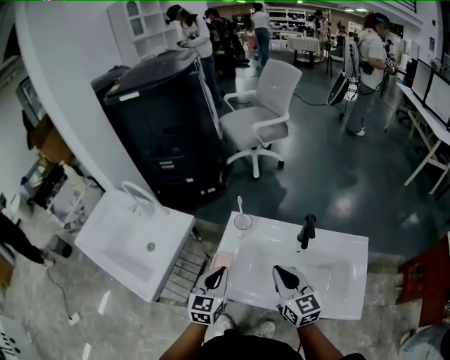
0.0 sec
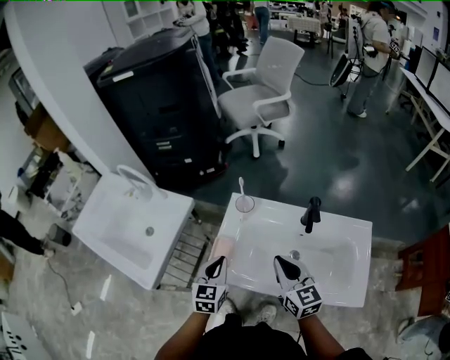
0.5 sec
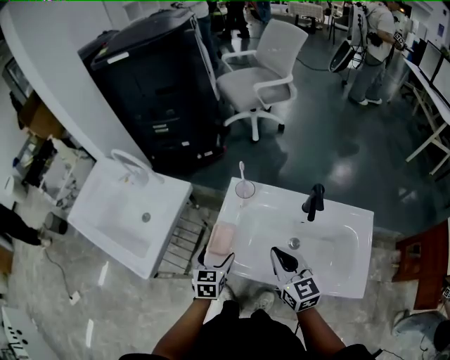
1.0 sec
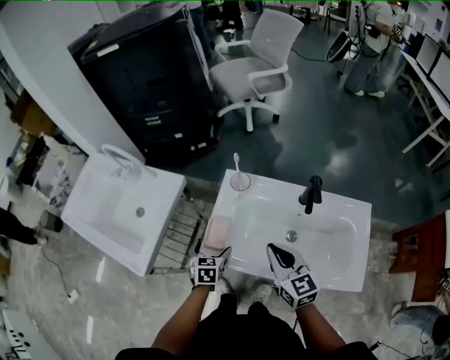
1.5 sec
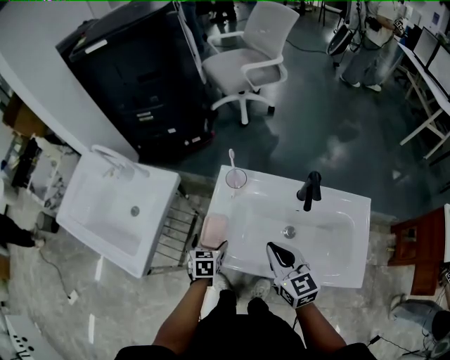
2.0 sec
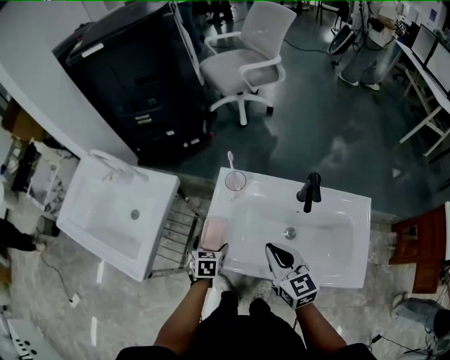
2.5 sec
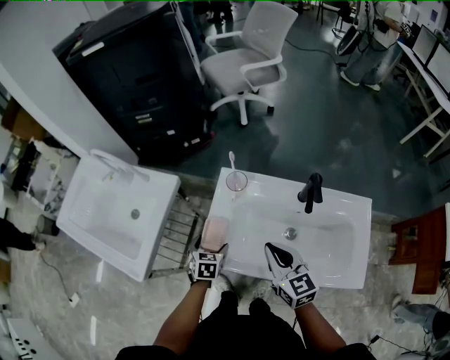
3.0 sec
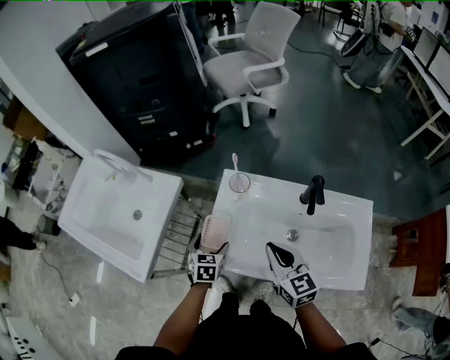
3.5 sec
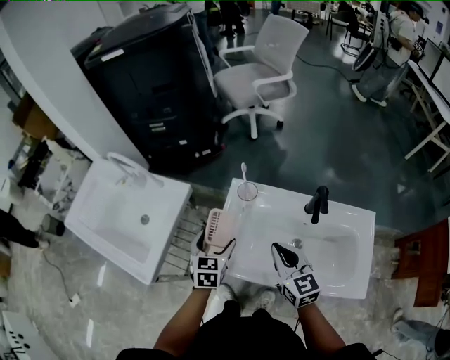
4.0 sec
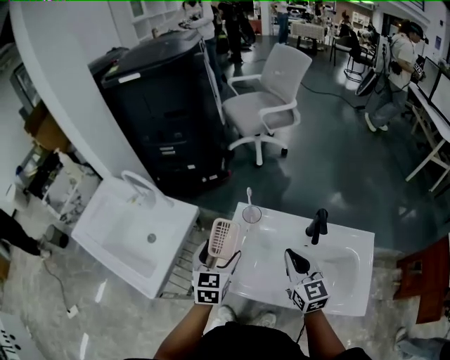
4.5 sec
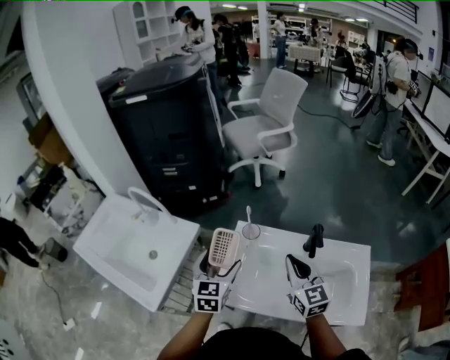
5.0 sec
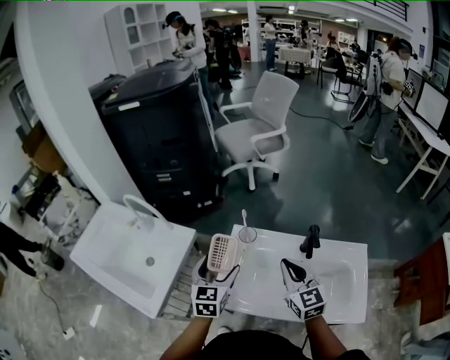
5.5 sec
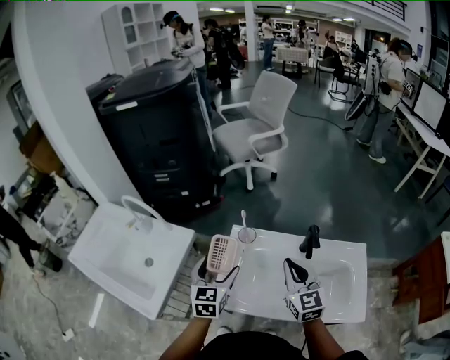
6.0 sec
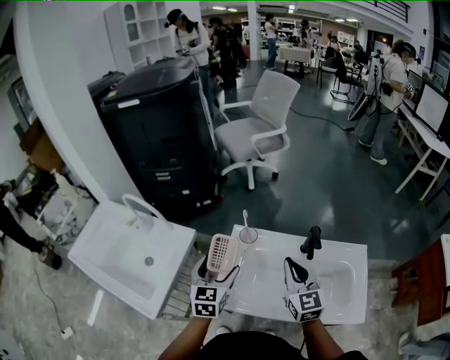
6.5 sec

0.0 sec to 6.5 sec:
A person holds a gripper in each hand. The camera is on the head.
0.0 sec to 2.0 sec: The left gripper shifts about 20 cm downward, angles its fingers downward, by some 30 degrees, and opens. The right gripper moves downward, approximately 5 cm.
2.0 sec to 4.5 sec: The right gripper goes roughly 5 cm forward; the left gripper is displaced upward by about 20 cm, and rotates approximately 30 degrees.
4.5 sec to 6.5 sec: The grippers make only small movements.

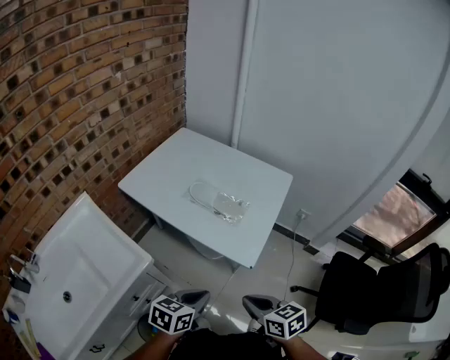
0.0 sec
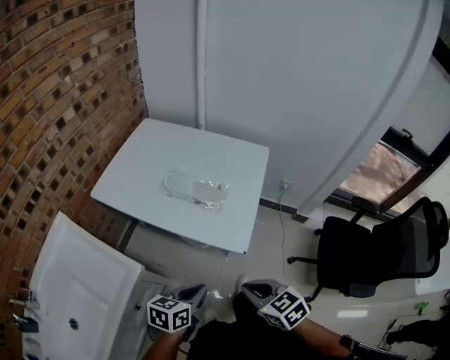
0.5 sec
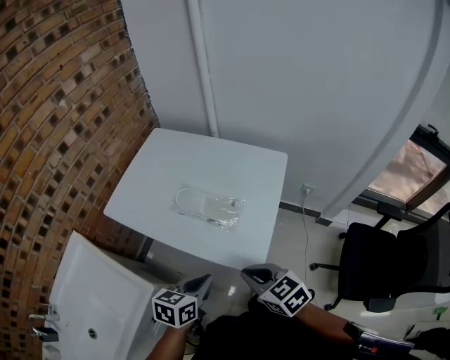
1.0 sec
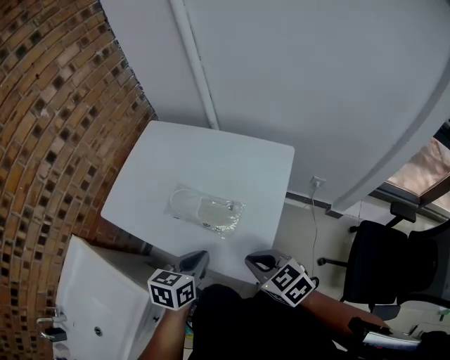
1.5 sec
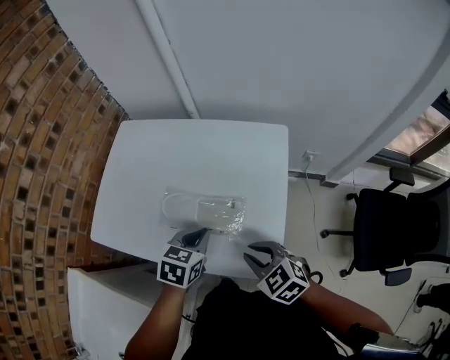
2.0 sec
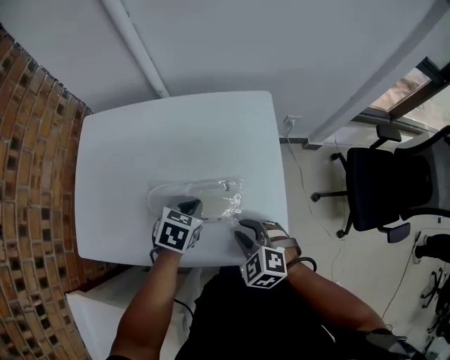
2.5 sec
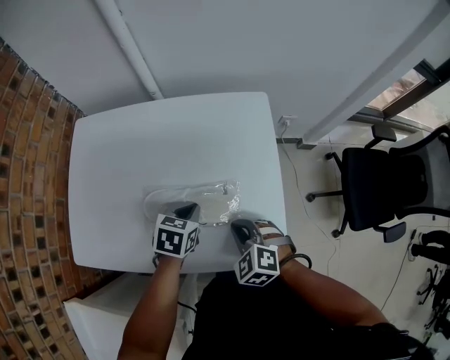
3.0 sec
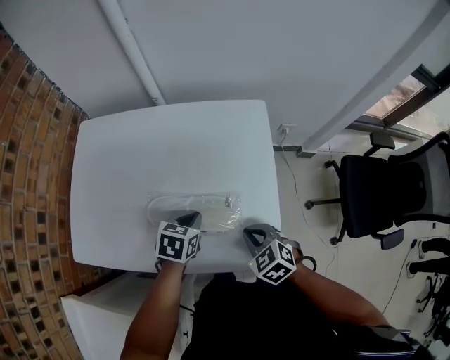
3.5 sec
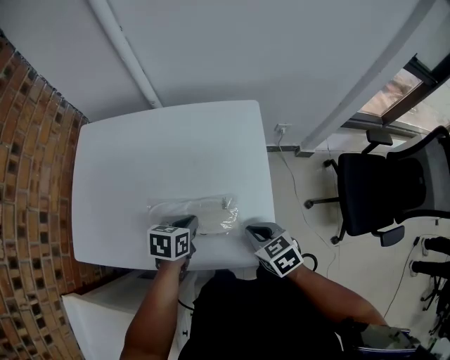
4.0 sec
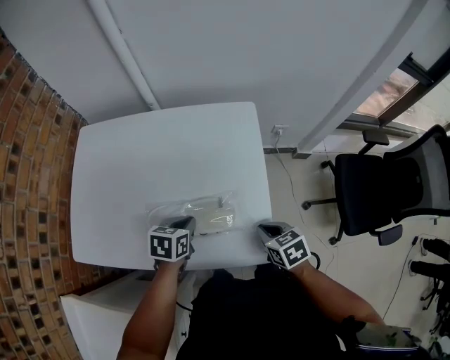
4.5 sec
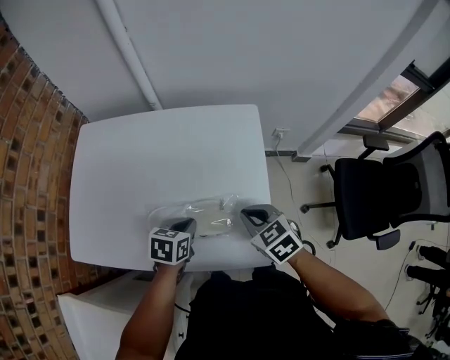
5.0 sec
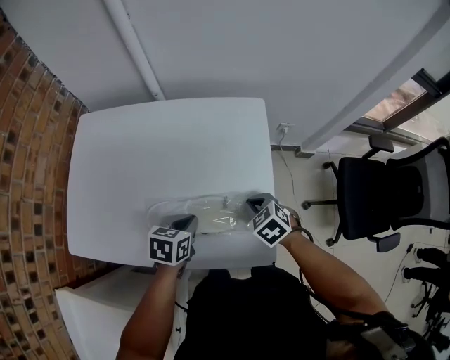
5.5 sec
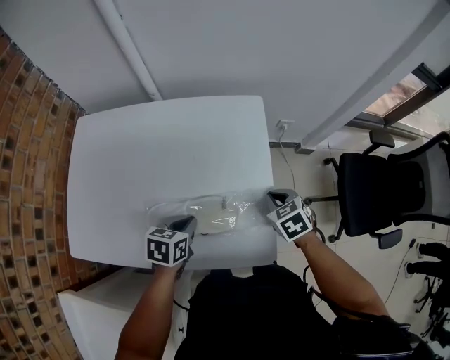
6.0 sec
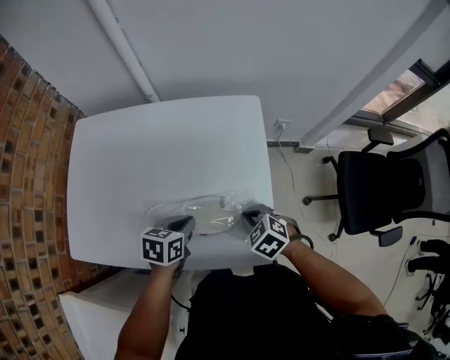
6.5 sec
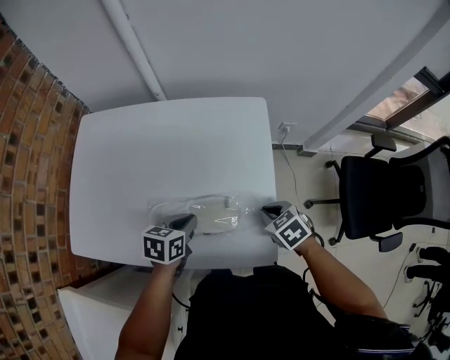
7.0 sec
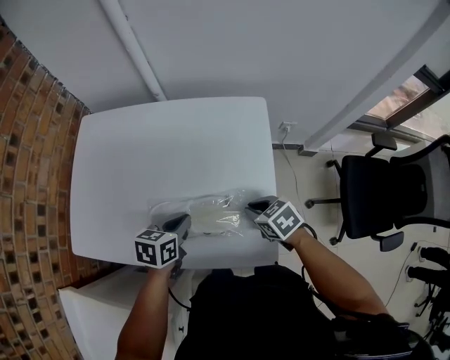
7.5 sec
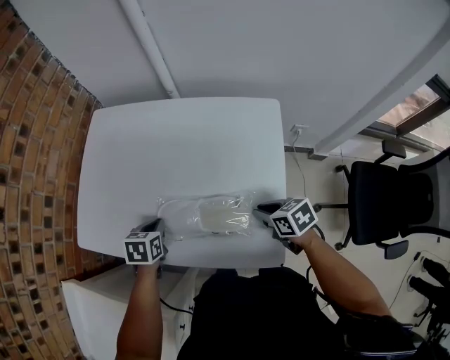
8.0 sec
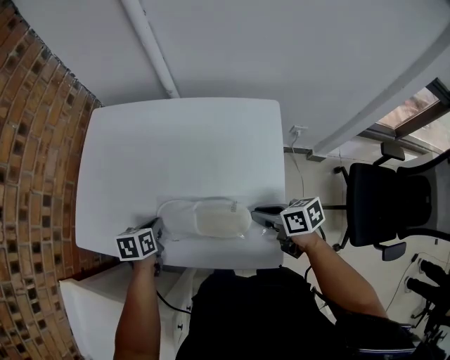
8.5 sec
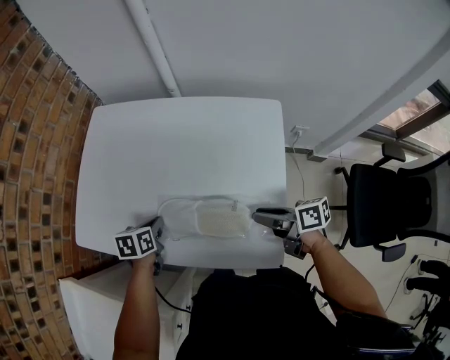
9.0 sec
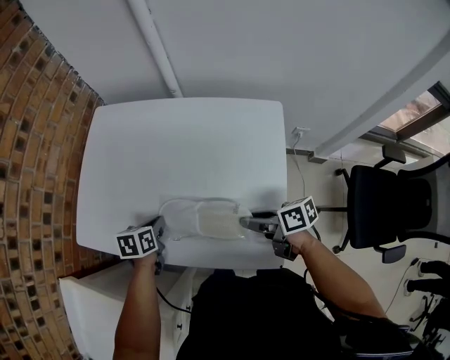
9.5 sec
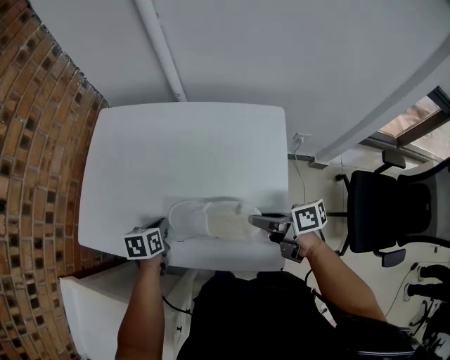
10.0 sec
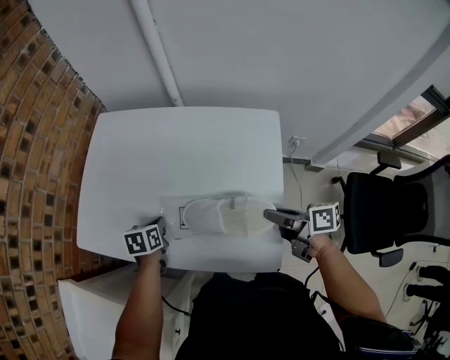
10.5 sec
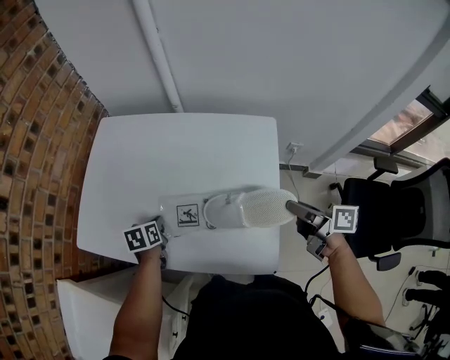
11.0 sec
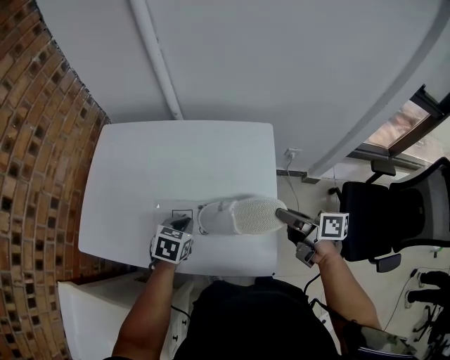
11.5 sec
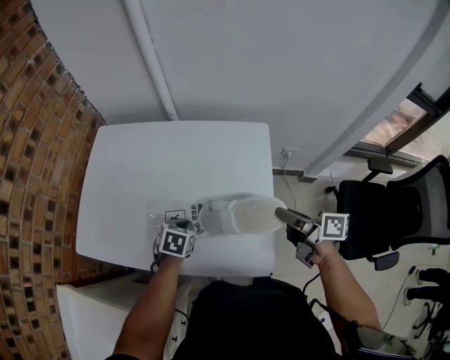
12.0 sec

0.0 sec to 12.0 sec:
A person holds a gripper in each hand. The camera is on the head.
0.0 sec to 2.0 sec: Both grippers move forward, roughly 35 cm. The left gripper swivels approximately 20 degrees. Meanwhile the right gripper turns by some 30 degrees.
2.0 sec to 4.0 sec: The two grippers go approximately 10 cm downward. The right gripper turns by roughly 30 degrees.
4.0 sec to 6.0 sec: The right gripper goes roughly 10 cm forward and to the right.
6.0 sec to 8.0 sec: The left gripper changes place by some 15 cm, and turns by roughly 20 degrees, while the right gripper changes place by some 10 cm, and changes its angle by some 30 degrees.
8.0 sec to 10.0 sec: The right gripper moves upward, approximately 5 cm, and tips its fingers upward by roughly 30 degrees.
10.0 sec to 12.0 sec: The left gripper goes approximately 10 cm to the right, and turns by approximately 30 degrees, while the right gripper is displaced to the right and upward by approximately 15 cm, and rotates roughly 20 degrees.

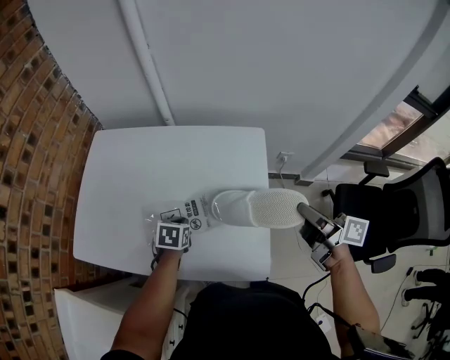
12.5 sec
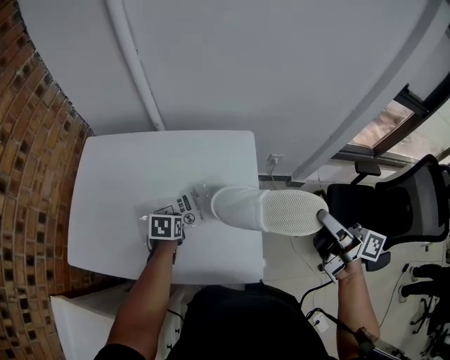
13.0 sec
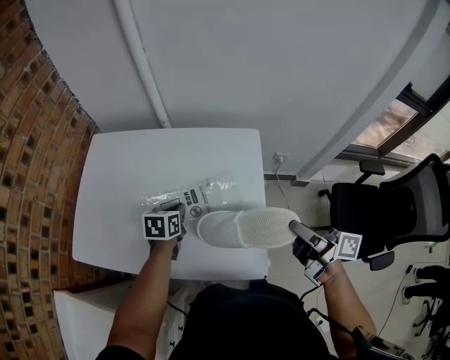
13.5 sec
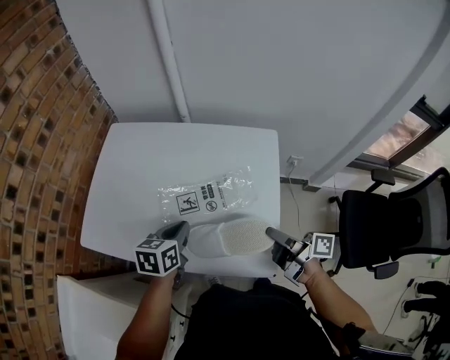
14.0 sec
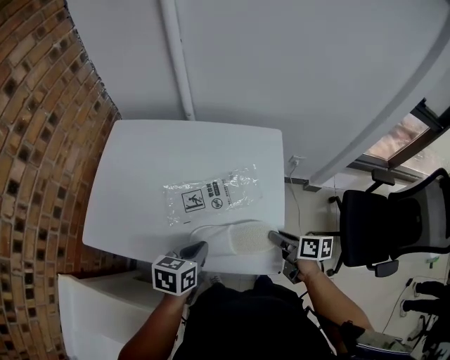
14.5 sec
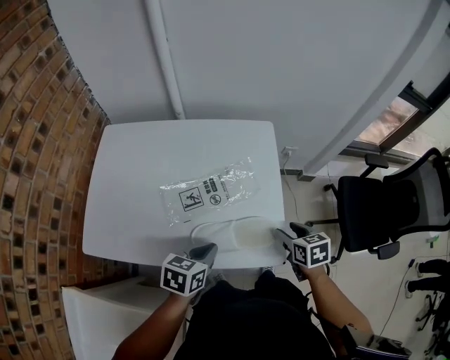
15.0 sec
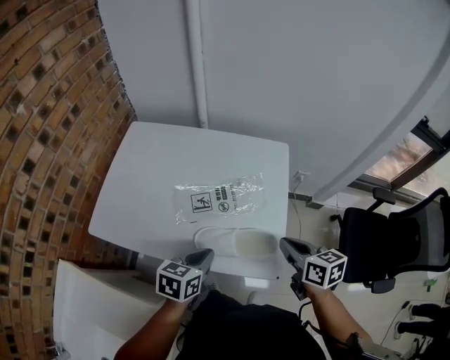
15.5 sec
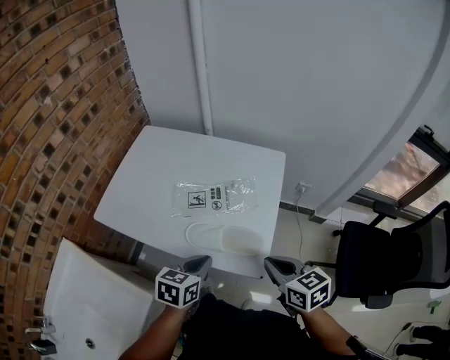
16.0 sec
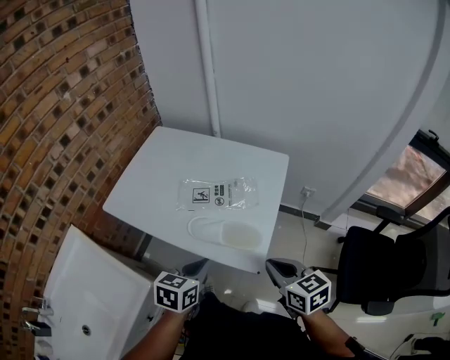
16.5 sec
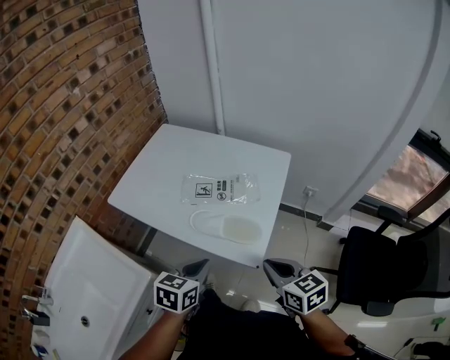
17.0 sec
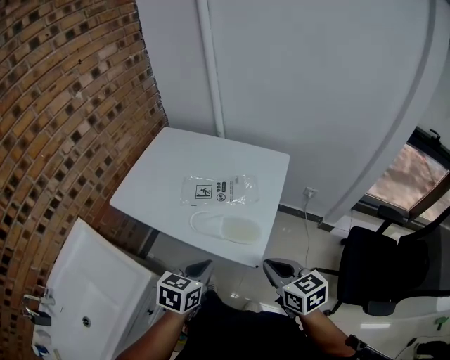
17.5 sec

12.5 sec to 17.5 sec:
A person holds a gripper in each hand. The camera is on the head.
12.5 sec to 15.0 sec: The left gripper travels backward and upward by approximately 15 cm, and rotates some 20 degrees. The right gripper goes some 20 cm downward, backward and to the left, angles its fingers downward, by roughly 40 degrees, and opens.
15.0 sec to 17.5 sec: The right gripper shifts by approximately 20 cm, swivels some 40 degrees, and closes, while the left gripper ends up roughly 20 cm from where it was, and rotates some 30 degrees.

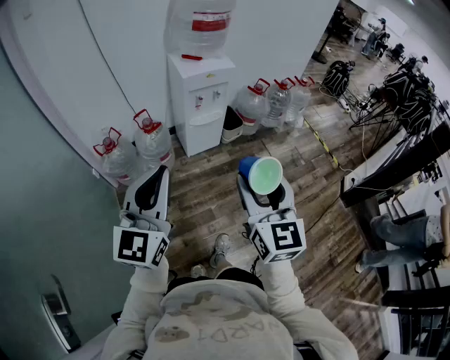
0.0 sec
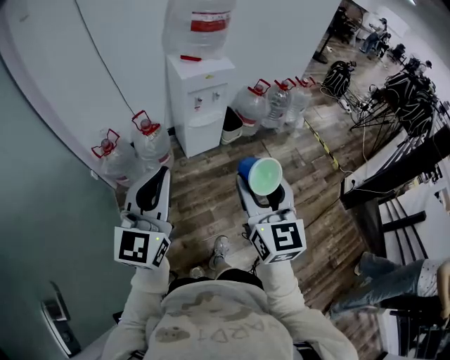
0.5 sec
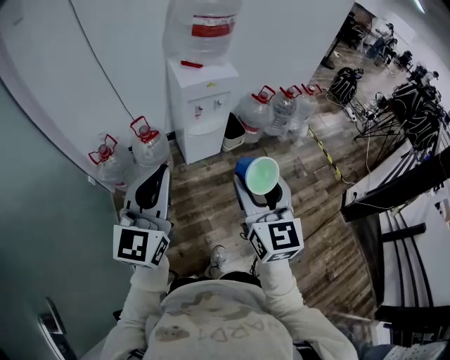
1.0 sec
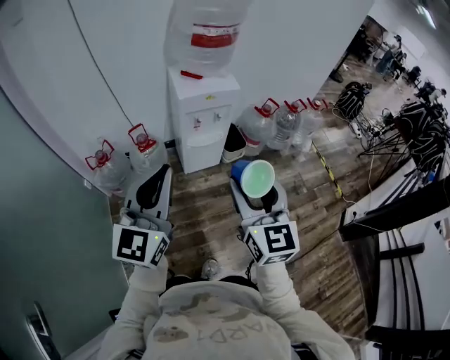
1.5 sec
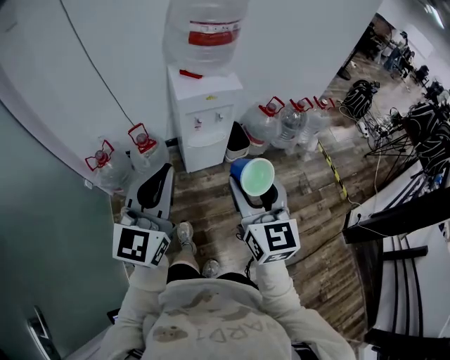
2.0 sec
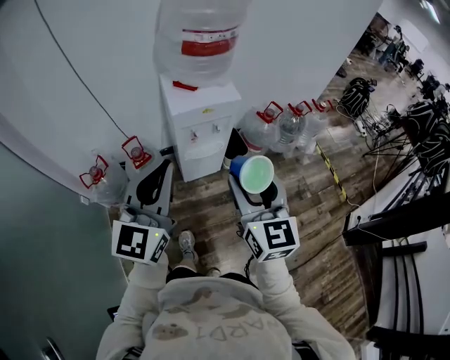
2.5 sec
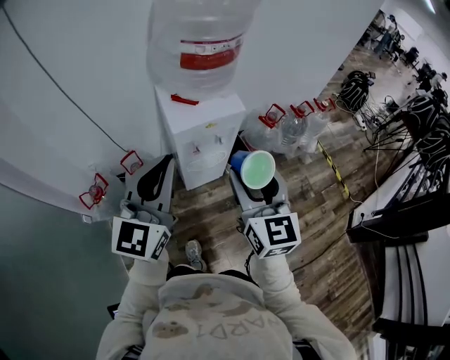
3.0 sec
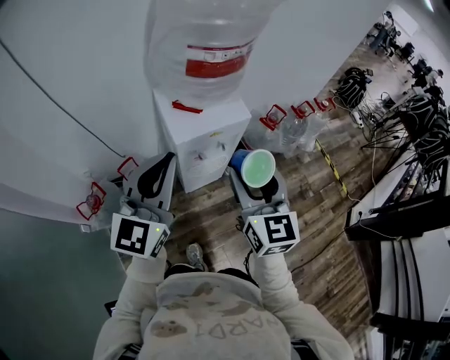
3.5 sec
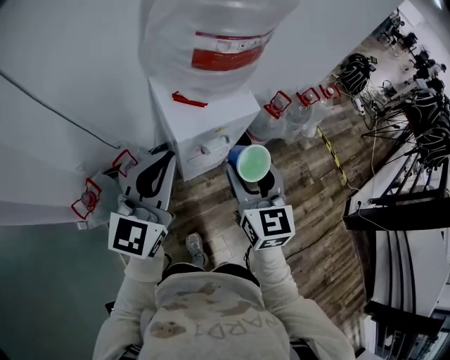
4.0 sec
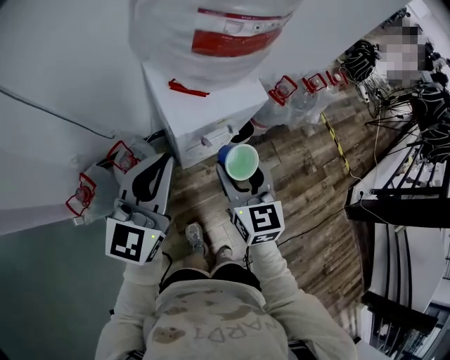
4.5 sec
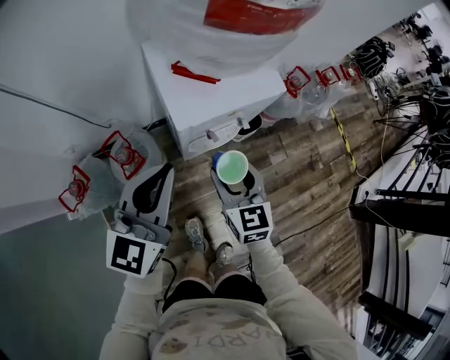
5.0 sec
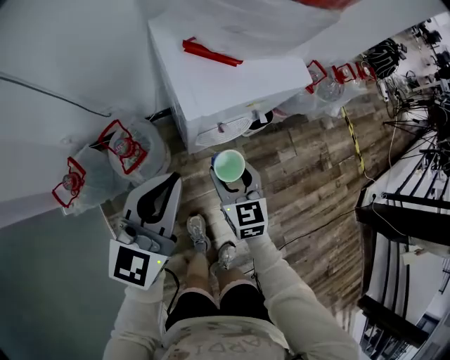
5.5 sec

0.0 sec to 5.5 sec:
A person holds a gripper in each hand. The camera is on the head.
0.0 sec to 2.0 sec: The two grippers go roughly 20 cm forward.
2.0 sec to 3.5 sec: The grippers both shift forward by approximately 25 cm.
3.5 sec to 5.5 sec: The grippers both shift downward by about 30 cm. The right gripper rotates approximately 20 degrees.
